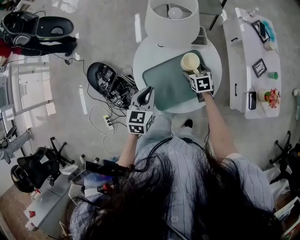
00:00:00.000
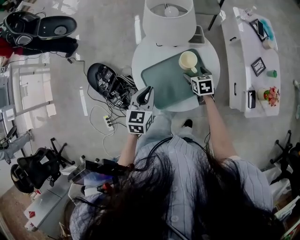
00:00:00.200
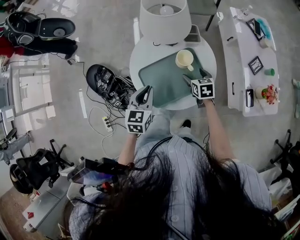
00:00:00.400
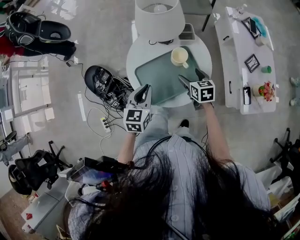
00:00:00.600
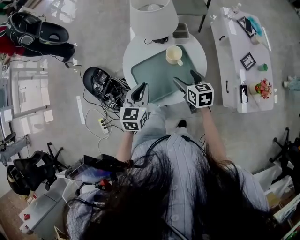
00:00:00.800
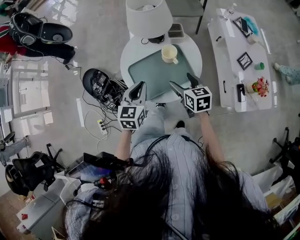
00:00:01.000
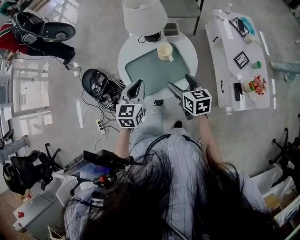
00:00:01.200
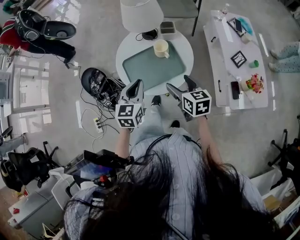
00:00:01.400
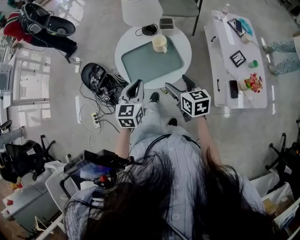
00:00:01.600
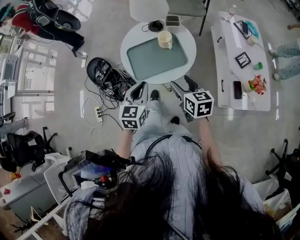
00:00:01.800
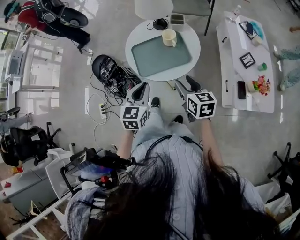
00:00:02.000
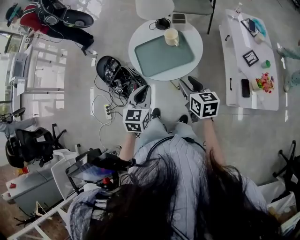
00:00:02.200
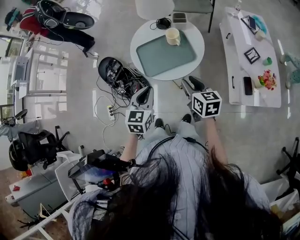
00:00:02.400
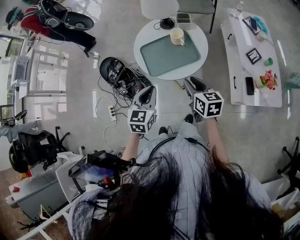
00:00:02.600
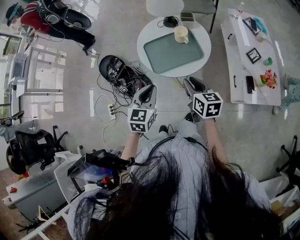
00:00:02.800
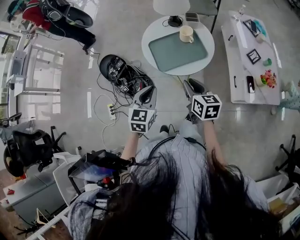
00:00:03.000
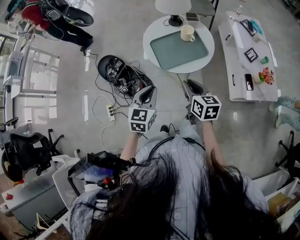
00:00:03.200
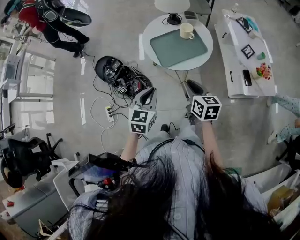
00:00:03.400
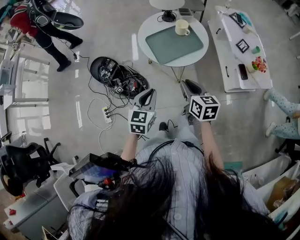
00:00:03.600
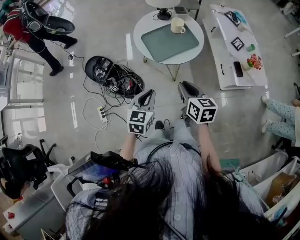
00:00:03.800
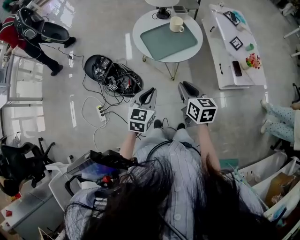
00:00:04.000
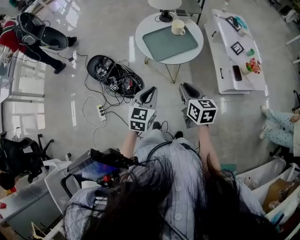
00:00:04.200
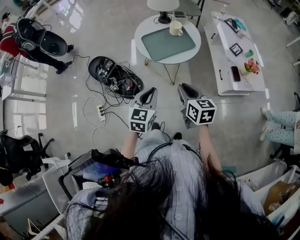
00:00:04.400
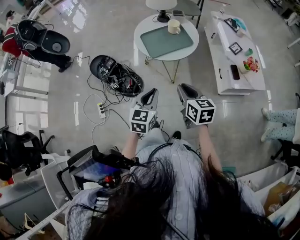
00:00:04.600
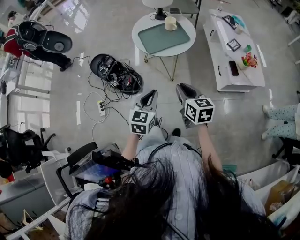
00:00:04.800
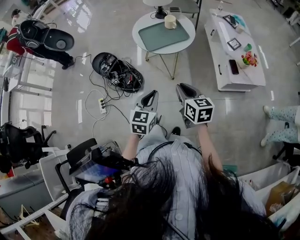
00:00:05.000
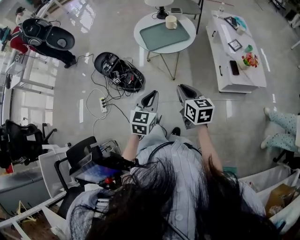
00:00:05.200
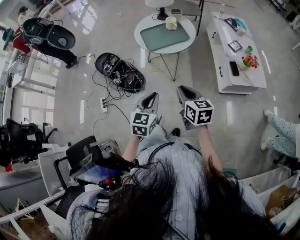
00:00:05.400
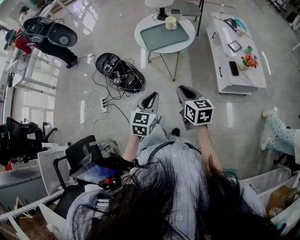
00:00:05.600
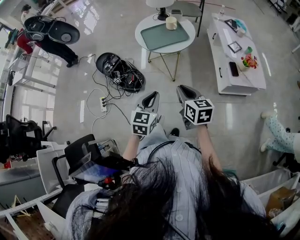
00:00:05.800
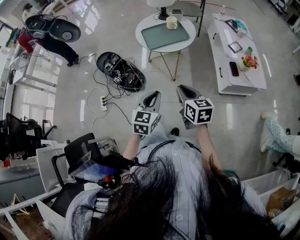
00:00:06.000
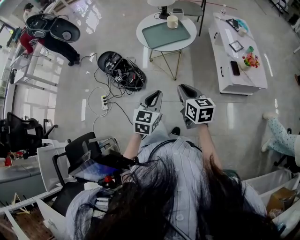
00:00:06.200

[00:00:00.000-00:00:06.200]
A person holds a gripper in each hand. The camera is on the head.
00:00:00.000 to 00:00:01.600: The left gripper shifts roughly 20 cm backward, to the right and upward. The right gripper heads backward and upward, covering approximately 30 cm, and rotates roughly 30 degrees.
00:00:01.600 to 00:00:03.200: Both grippers move to the left and backward, approximately 15 cm. The right gripper closes its fingers.
00:00:03.200 to 00:00:04.600: The right gripper shifts about 15 cm backward. The left gripper shifts roughly 15 cm backward and to the right.
00:00:04.600 to 00:00:06.200: The right gripper is displaced backward by some 10 cm. The left gripper heads backward and to the right, covering some 15 cm.

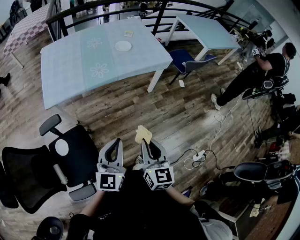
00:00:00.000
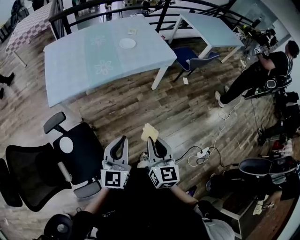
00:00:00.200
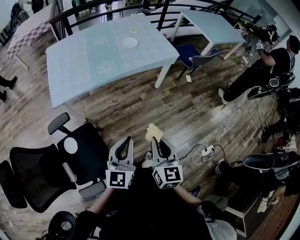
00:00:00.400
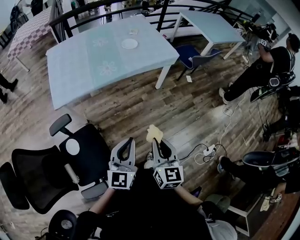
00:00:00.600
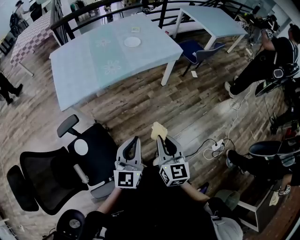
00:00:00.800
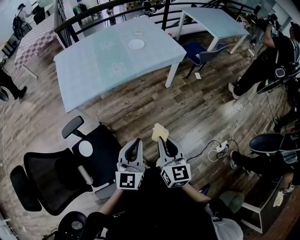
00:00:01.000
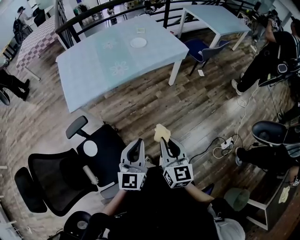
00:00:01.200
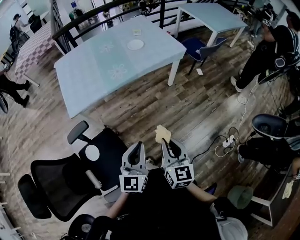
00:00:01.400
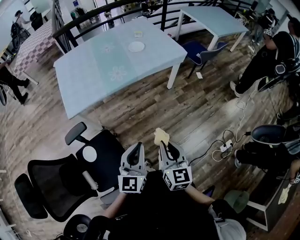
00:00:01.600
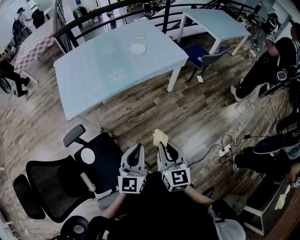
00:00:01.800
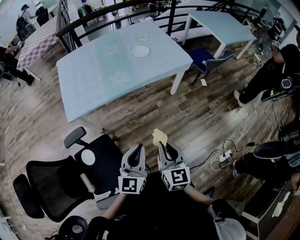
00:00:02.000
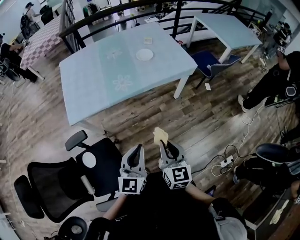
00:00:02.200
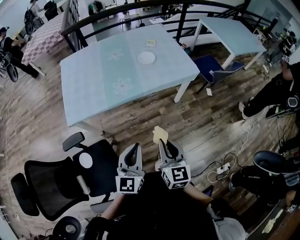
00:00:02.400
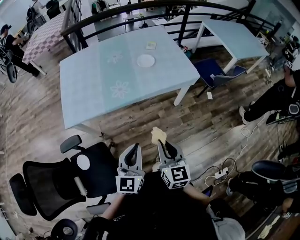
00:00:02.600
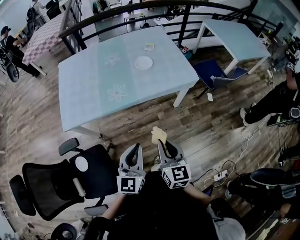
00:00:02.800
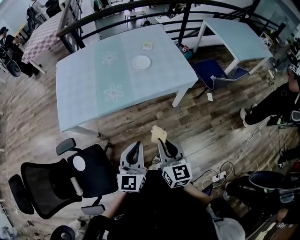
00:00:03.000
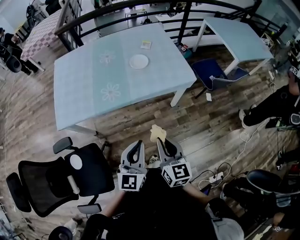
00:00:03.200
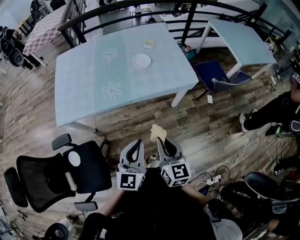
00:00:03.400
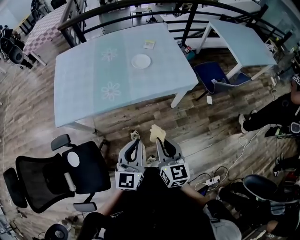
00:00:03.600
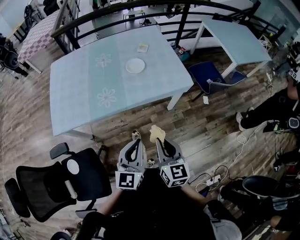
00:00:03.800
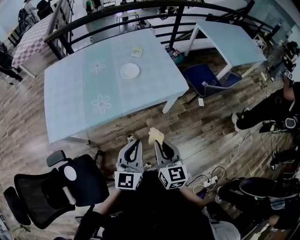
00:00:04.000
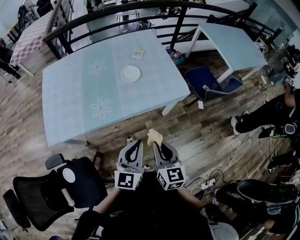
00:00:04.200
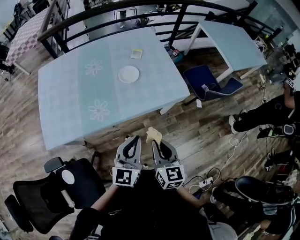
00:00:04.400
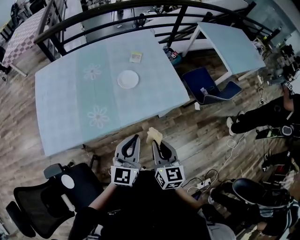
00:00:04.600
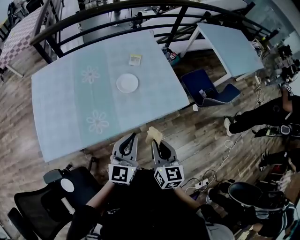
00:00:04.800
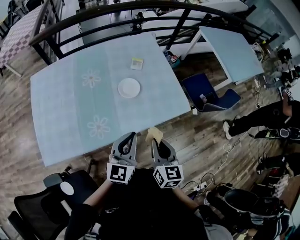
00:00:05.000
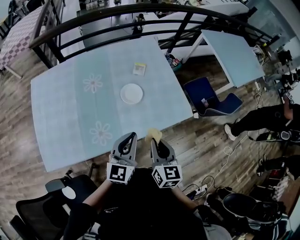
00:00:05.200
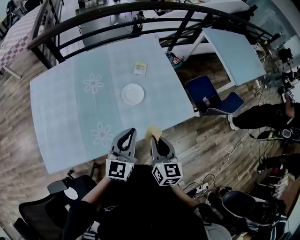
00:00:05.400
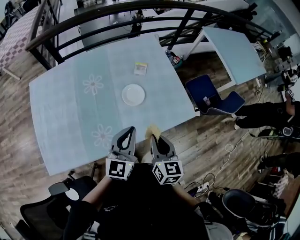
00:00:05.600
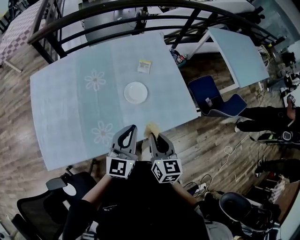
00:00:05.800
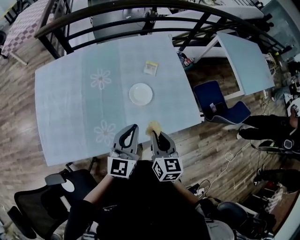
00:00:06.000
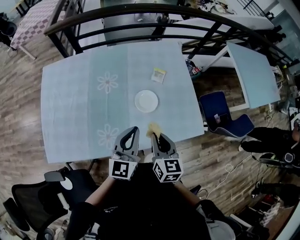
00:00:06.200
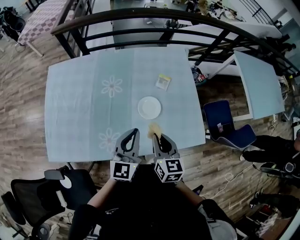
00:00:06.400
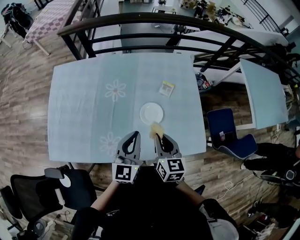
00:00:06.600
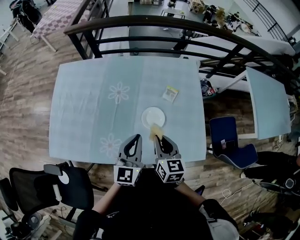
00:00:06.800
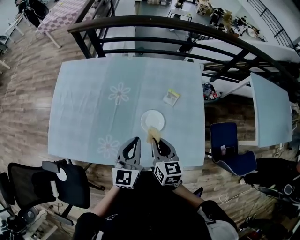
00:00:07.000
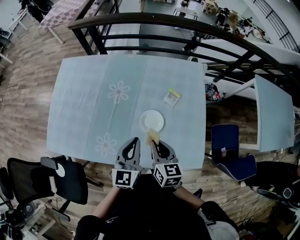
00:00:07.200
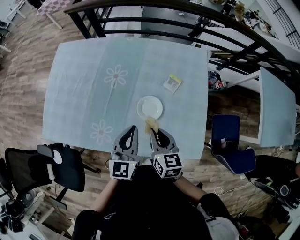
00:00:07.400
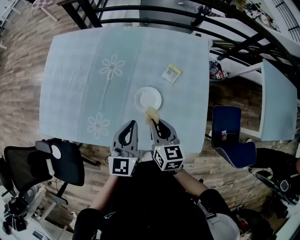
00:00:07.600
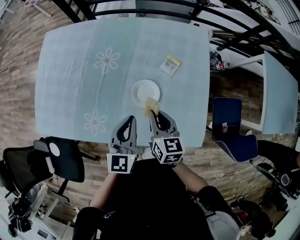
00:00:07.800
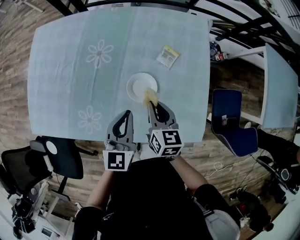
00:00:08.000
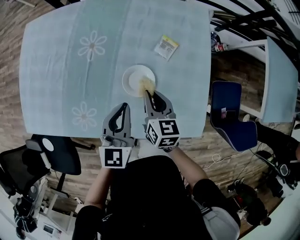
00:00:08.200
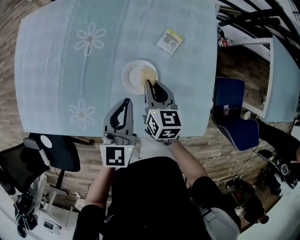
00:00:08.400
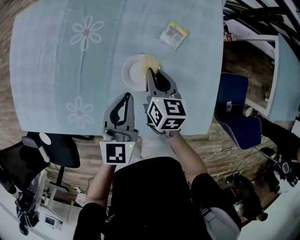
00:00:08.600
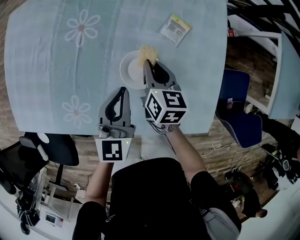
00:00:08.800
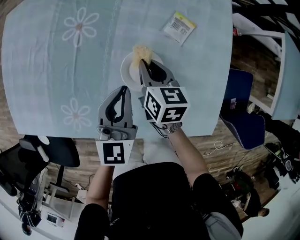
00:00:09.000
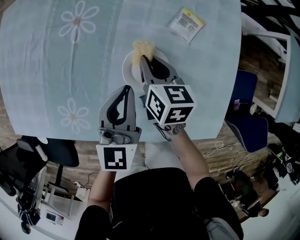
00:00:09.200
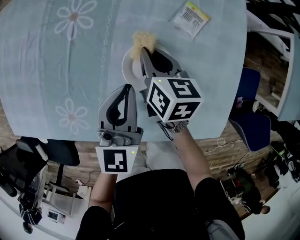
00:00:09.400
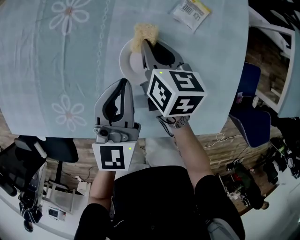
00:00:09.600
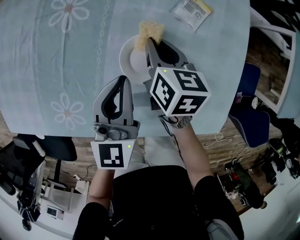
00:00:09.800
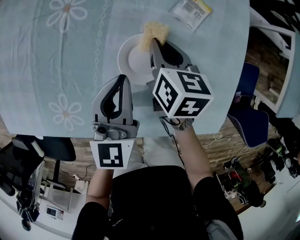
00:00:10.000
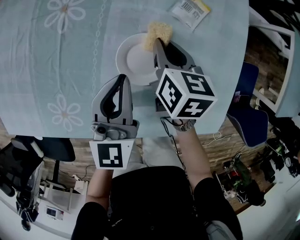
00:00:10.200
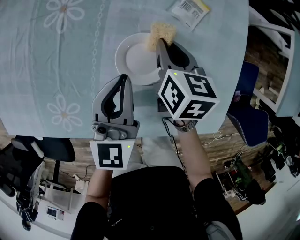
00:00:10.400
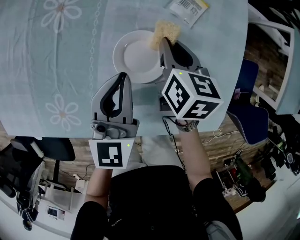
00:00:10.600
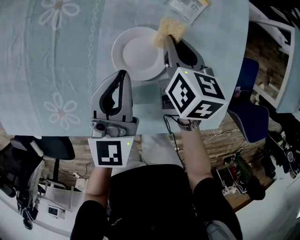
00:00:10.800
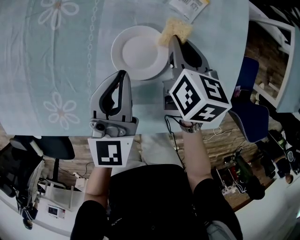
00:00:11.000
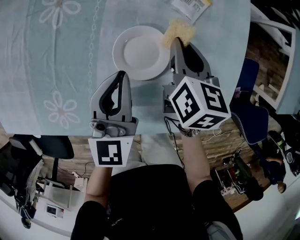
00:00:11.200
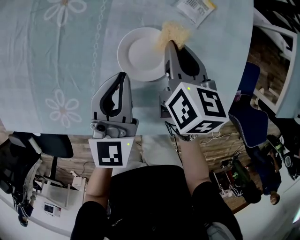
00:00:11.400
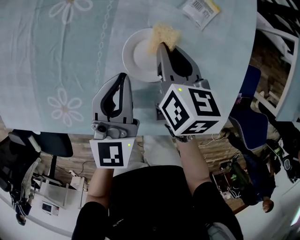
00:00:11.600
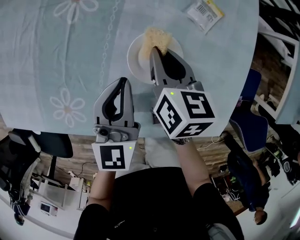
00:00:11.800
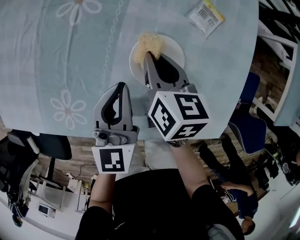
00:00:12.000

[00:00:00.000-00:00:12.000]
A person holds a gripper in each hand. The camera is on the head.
00:00:00.000 to 00:00:01.600: The right gripper ends up roughly 5 cm from where it was.
00:00:01.600 to 00:00:03.000: Both grippers travel together forward and to the right, approximately 25 cm.
00:00:03.000 to 00:00:04.400: The grippers both shift forward by some 15 cm.
00:00:04.400 to 00:00:06.000: Both grippers travel together forward and to the left, some 25 cm.
00:00:06.000 to 00:00:07.600: The right gripper changes place by some 15 cm, and swivels roughly 30 degrees. The left gripper moves approximately 10 cm, and swivels about 30 degrees.
00:00:07.600 to 00:00:09.000: The two grippers go roughly 20 cm downward and forward.
00:00:09.000 to 00:00:10.400: The right gripper shifts some 5 cm to the right.
00:00:10.400 to 00:00:12.000: The left gripper changes place by some 5 cm. The right gripper shifts about 10 cm to the left.

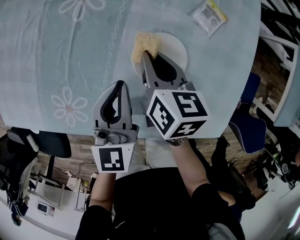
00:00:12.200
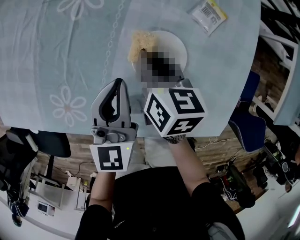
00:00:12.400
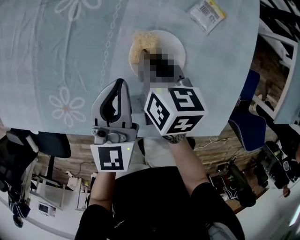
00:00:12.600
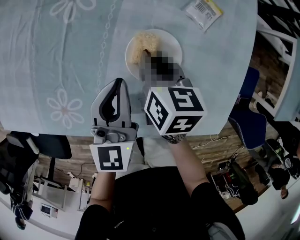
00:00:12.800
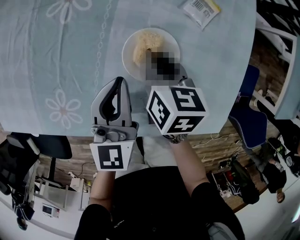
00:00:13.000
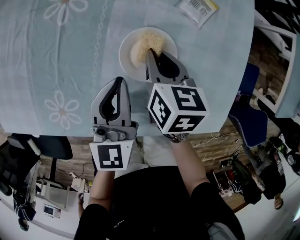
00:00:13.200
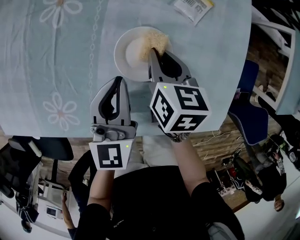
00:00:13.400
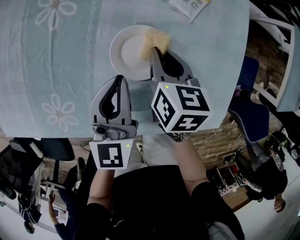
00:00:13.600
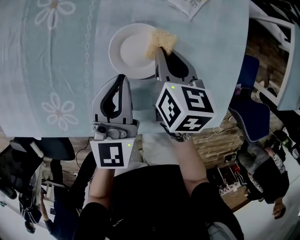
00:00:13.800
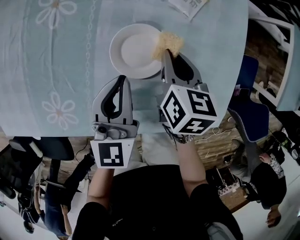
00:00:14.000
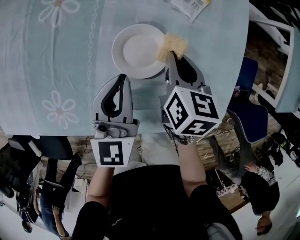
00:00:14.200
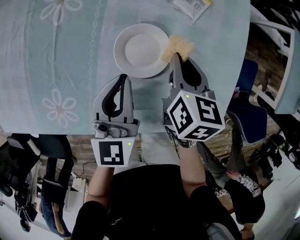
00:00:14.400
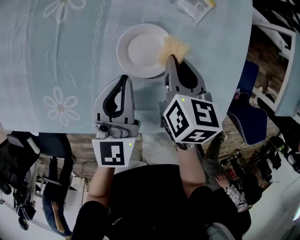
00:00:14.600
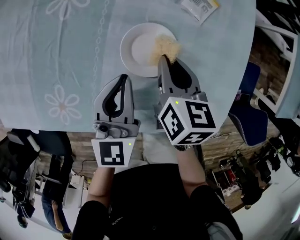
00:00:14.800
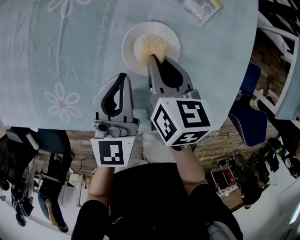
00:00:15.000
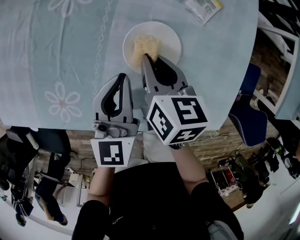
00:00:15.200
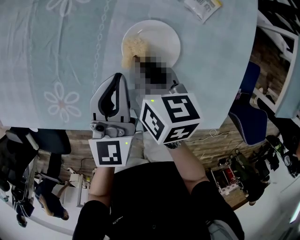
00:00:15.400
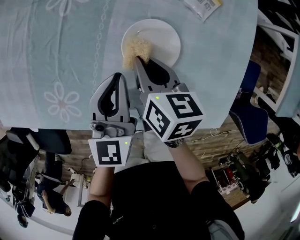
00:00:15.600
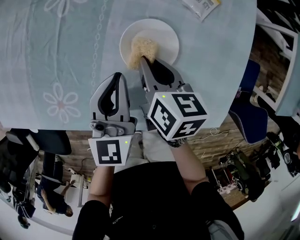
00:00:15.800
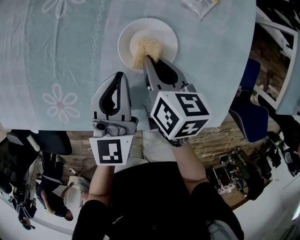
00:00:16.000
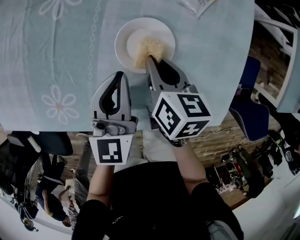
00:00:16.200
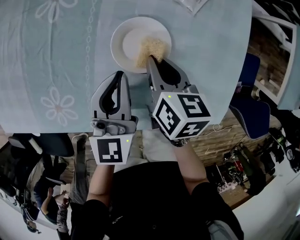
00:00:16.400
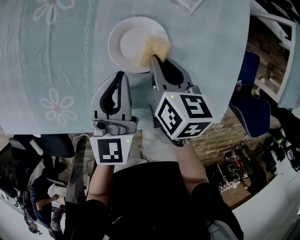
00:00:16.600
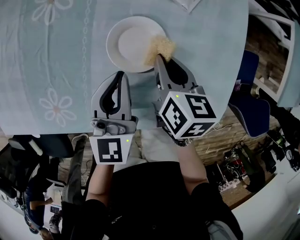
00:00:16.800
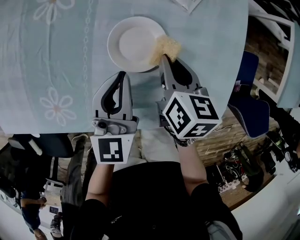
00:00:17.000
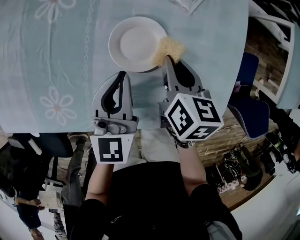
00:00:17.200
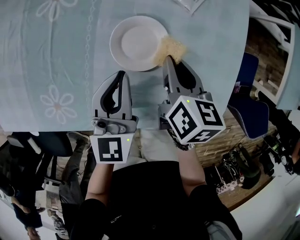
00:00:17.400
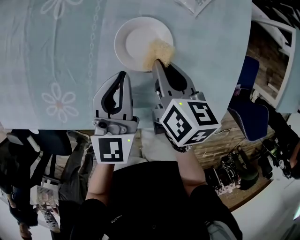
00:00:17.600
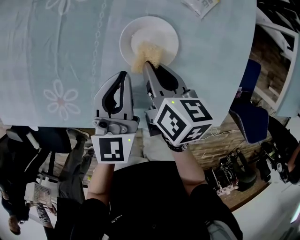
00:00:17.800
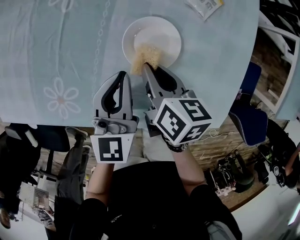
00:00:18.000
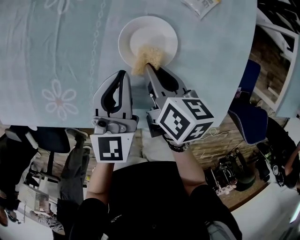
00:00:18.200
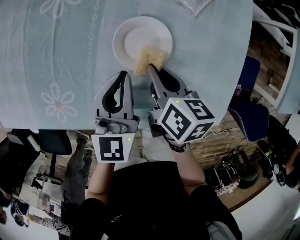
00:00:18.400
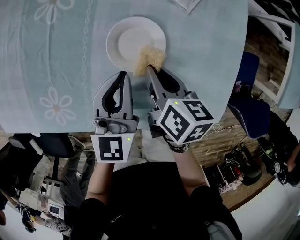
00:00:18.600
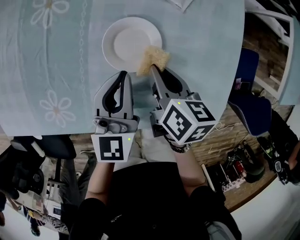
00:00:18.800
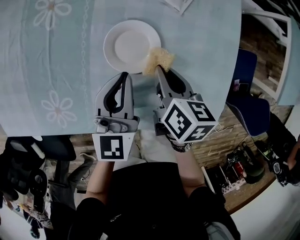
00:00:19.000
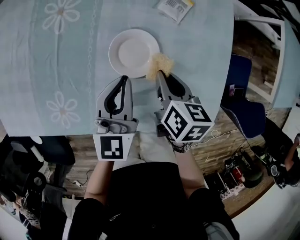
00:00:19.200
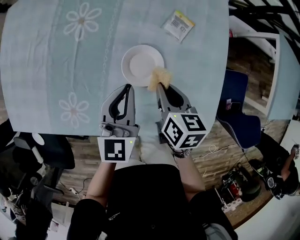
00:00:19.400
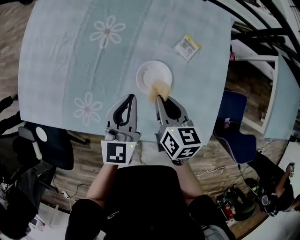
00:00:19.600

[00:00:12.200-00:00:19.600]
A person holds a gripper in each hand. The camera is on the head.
00:00:12.200 to 00:00:13.600: The left gripper shifts by approximately 5 cm; the right gripper heads to the right, covering approximately 10 cm.
00:00:13.600 to 00:00:15.200: The right gripper moves to the left, roughly 5 cm.
00:00:15.200 to 00:00:16.600: The right gripper shifts about 5 cm to the right.
00:00:16.600 to 00:00:18.200: The grippers make only small movements.
00:00:18.200 to 00:00:19.600: Both grippers travel together upward, about 10 cm.
